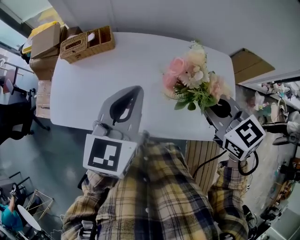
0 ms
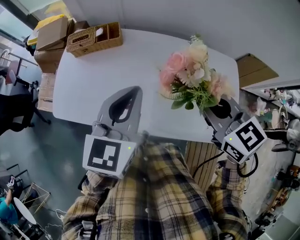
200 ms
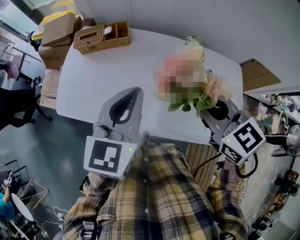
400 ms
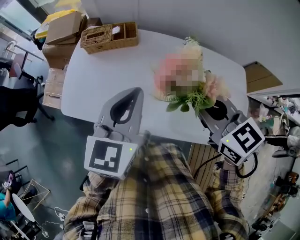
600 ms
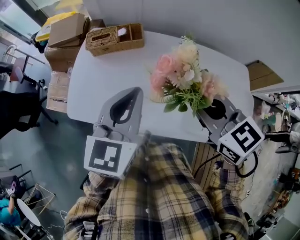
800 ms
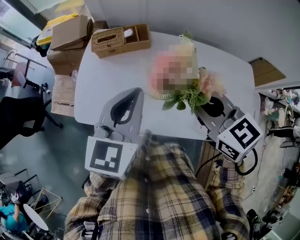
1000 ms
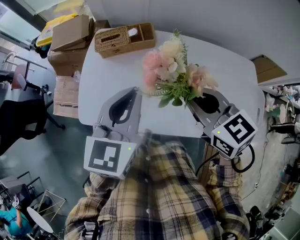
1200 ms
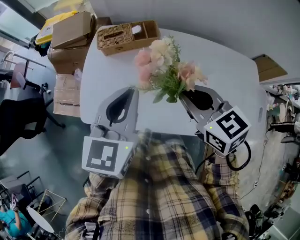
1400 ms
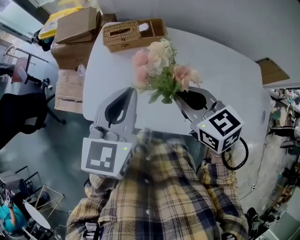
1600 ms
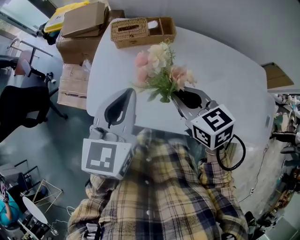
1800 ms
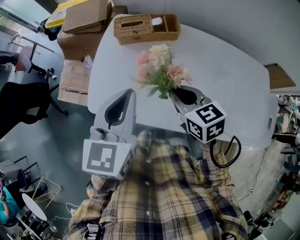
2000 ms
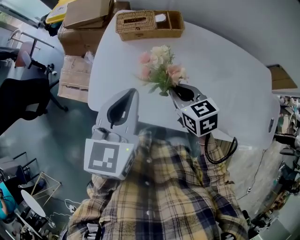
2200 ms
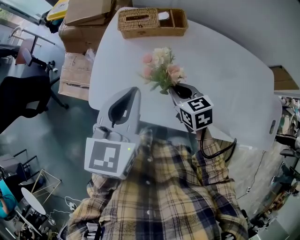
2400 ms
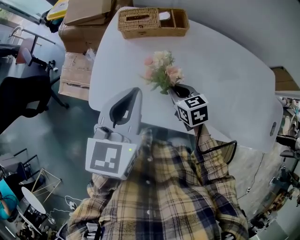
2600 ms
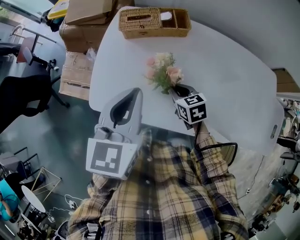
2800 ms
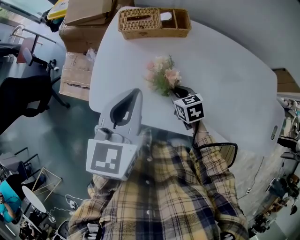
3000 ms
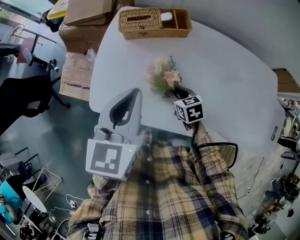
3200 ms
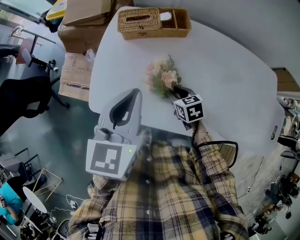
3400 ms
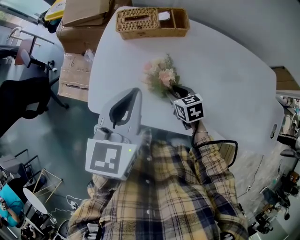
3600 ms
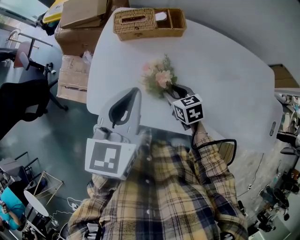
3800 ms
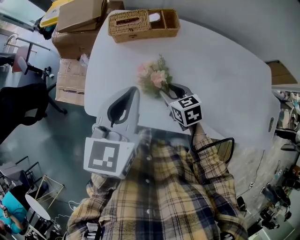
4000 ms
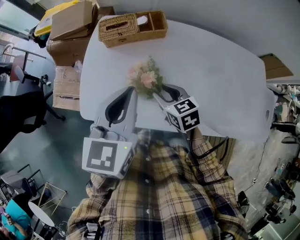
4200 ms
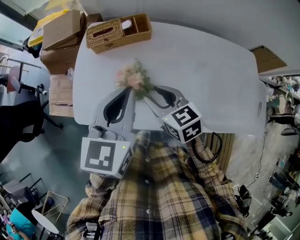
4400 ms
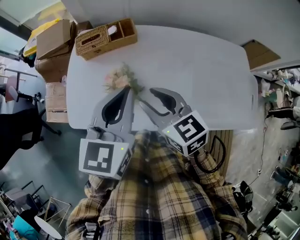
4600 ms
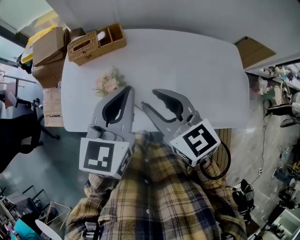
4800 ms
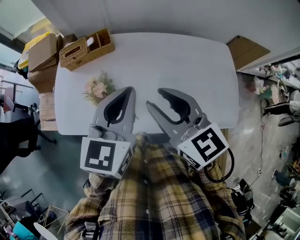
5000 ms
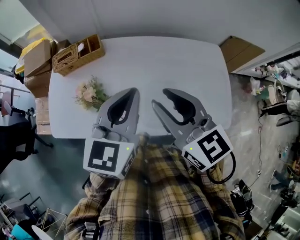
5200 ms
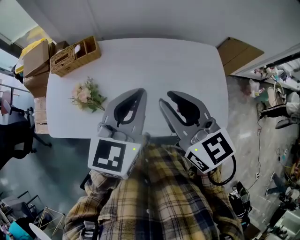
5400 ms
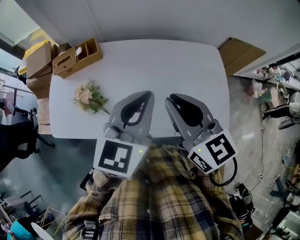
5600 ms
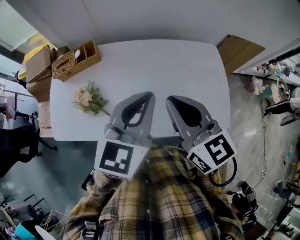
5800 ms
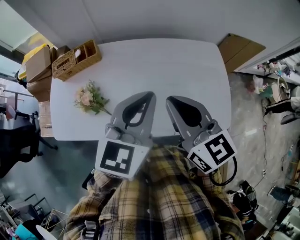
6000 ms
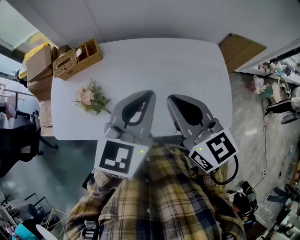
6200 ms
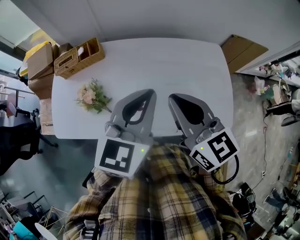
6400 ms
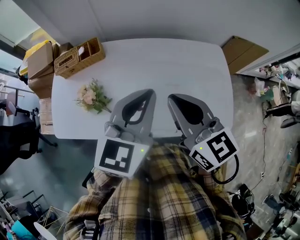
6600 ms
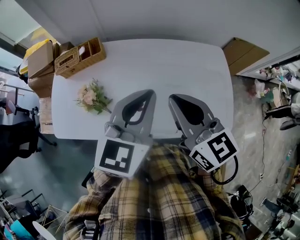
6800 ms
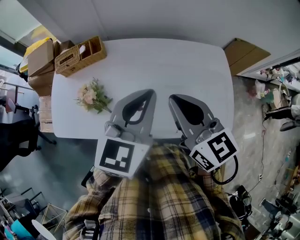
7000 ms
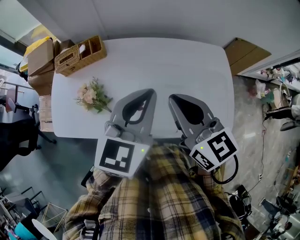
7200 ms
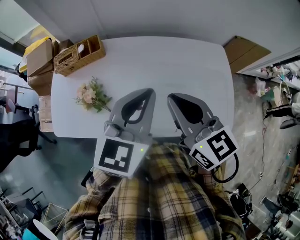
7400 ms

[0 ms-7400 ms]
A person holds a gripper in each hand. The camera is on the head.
0 ms to 1400 ms: The grippers both shift to the left by some 25 cm.
1400 ms to 3000 ms: The right gripper heads downward, covering some 30 cm, and rotates some 20 degrees. The left gripper goes approximately 10 cm downward and to the left.
3000 ms to 4400 ms: The left gripper shifts approximately 10 cm to the right, while the right gripper heads upward, covering approximately 15 cm, and opens its fingers.
4400 ms to 6000 ms: The left gripper goes approximately 35 cm to the right. The right gripper is displaced to the right and upward by some 35 cm, turns by about 30 degrees, and closes.
6000 ms to 7400 ms: The grippers move only a little.

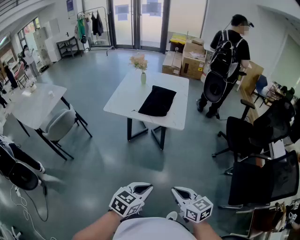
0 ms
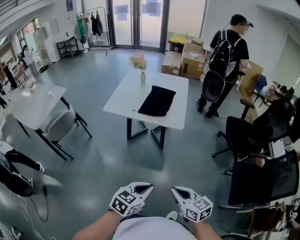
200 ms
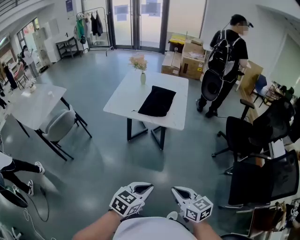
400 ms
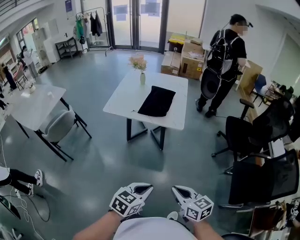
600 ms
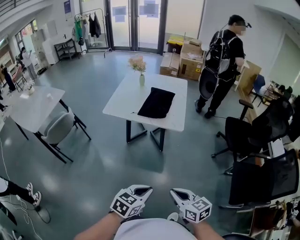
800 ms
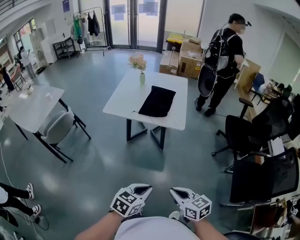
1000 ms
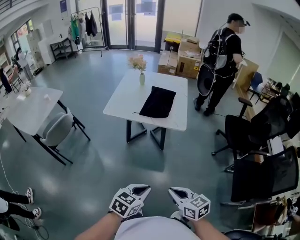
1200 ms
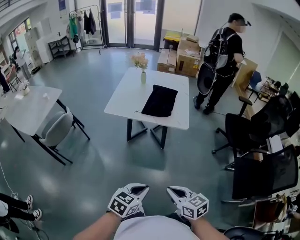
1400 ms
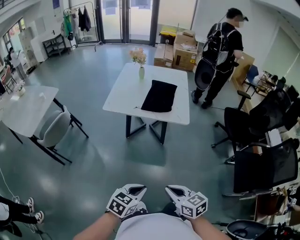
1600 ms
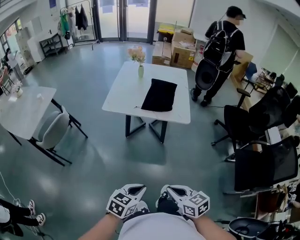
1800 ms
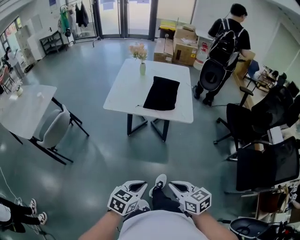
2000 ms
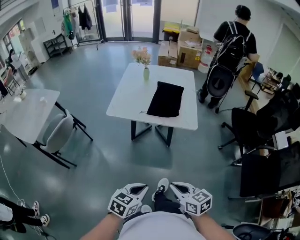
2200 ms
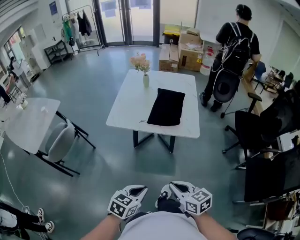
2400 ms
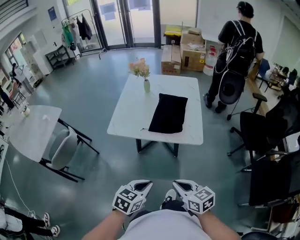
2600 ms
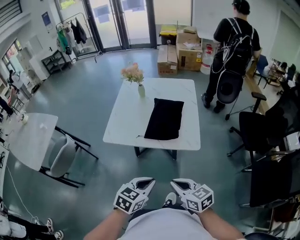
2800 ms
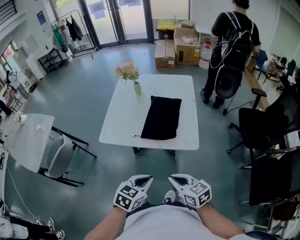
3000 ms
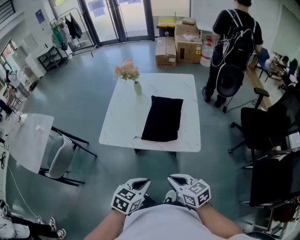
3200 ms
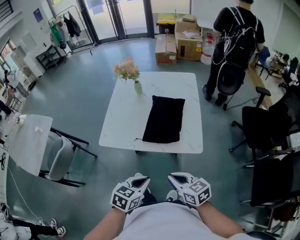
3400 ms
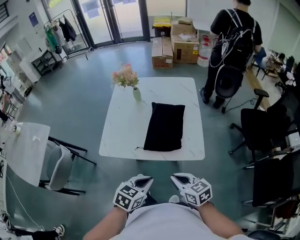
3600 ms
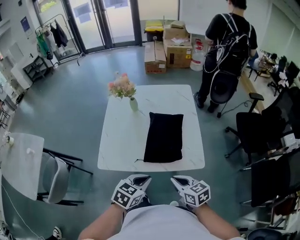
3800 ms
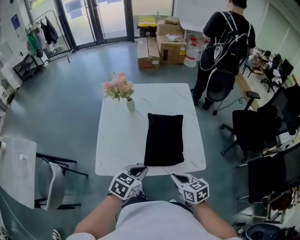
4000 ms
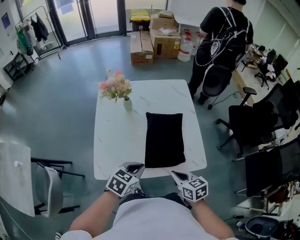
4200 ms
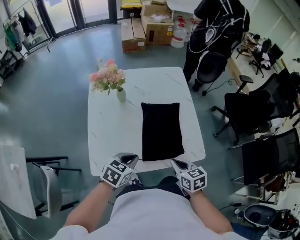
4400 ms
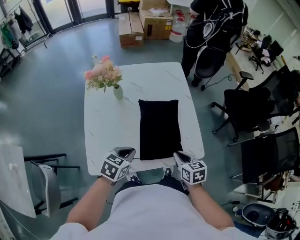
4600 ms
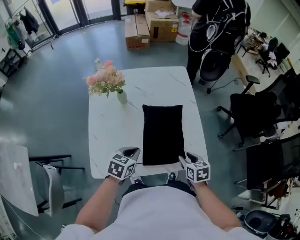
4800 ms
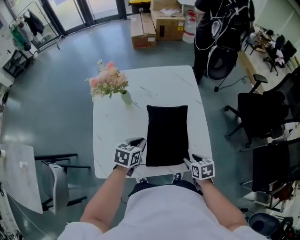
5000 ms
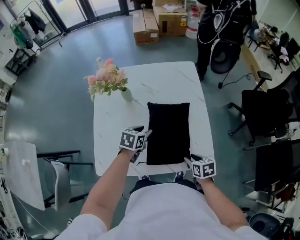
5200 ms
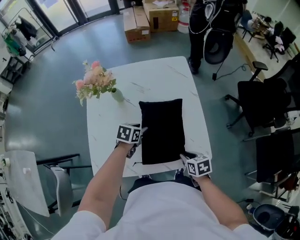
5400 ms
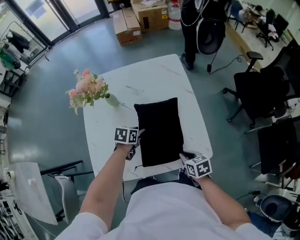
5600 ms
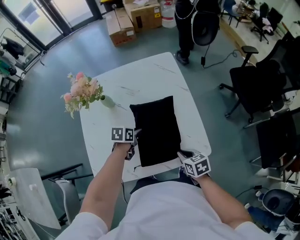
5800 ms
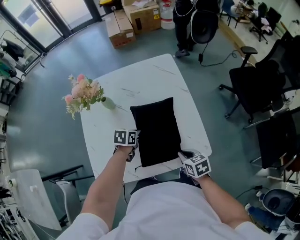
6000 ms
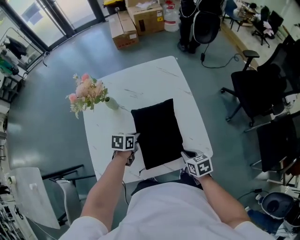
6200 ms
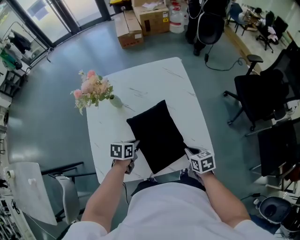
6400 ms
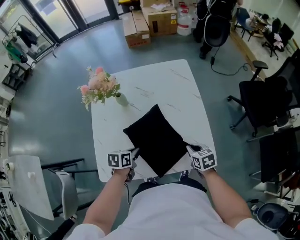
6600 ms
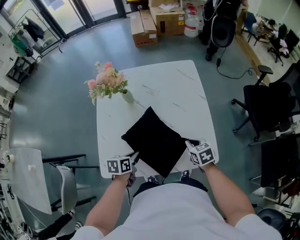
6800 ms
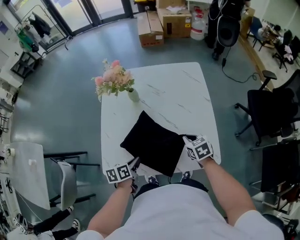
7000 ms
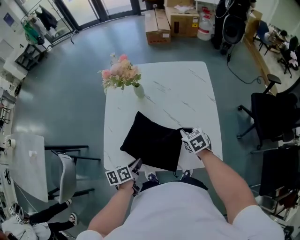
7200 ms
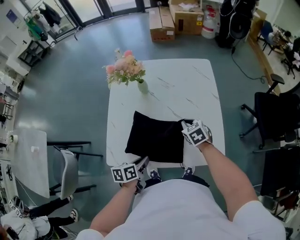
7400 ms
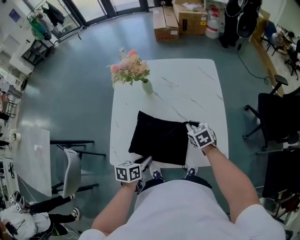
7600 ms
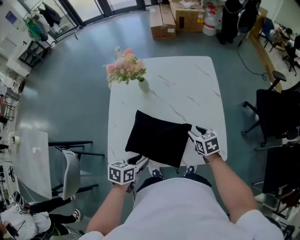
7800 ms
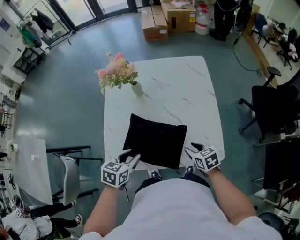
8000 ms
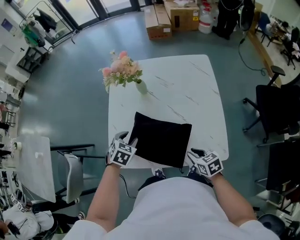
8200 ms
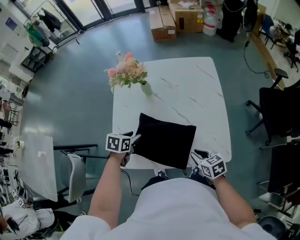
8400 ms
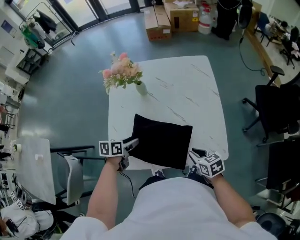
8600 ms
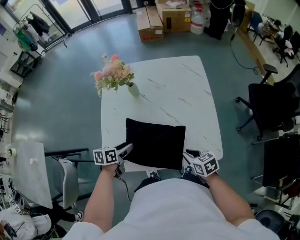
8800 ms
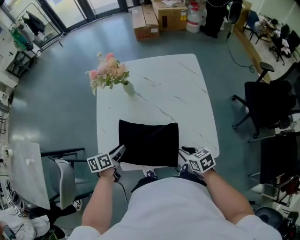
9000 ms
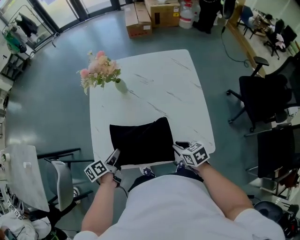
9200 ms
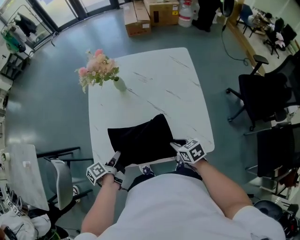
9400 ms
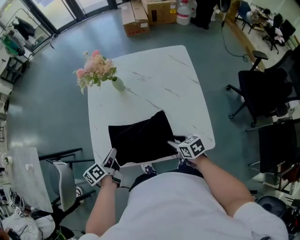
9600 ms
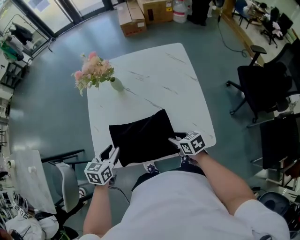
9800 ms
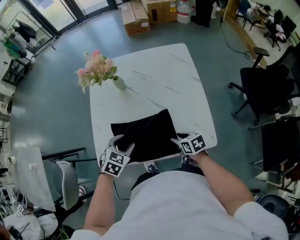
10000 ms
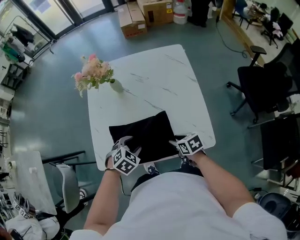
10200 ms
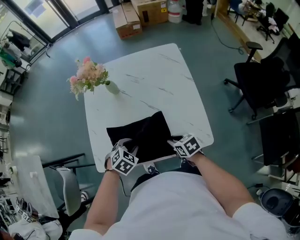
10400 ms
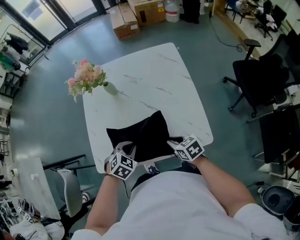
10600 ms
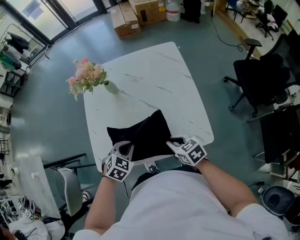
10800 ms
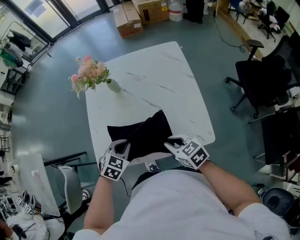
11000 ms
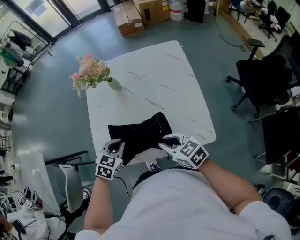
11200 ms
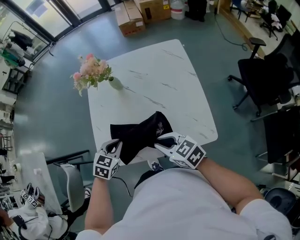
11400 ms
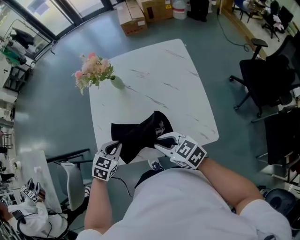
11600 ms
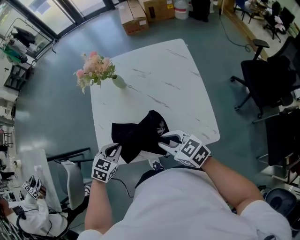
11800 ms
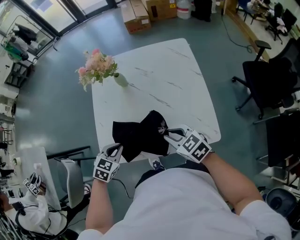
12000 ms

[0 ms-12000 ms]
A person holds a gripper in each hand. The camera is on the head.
0 ms to 1600 ms: Both grippers travel together to the left, about 15 cm.
1600 ms to 3000 ms: Both grippers travel together forward, roughly 30 cm.
3000 ms to 4400 ms: The left gripper changes place by approximately 35 cm. Meanwhile the right gripper changes place by about 25 cm, and changes its angle by approximately 30 degrees.
4400 ms to 6000 ms: The left gripper is displaced forward and downward by roughly 20 cm, rotates some 20 degrees, and opens, then closes once more, while the right gripper is displaced downward, to the right and forward by about 10 cm, and opens, then closes again.
6000 ms to 7600 ms: The right gripper shifts about 15 cm forward and to the left, and changes its angle by roughly 30 degrees; the left gripper moves backward, roughly 20 cm, and changes its angle by about 30 degrees.
7600 ms to 9000 ms: The right gripper heads backward, covering approximately 15 cm, turns by about 20 degrees, and opens and closes again; the left gripper shifts roughly 10 cm to the left and forward, and opens, then closes once more.
9000 ms to 10400 ms: The left gripper moves to the right, about 10 cm, and twists roughly 70 degrees clockwise, seen from behind.
10400 ms to 12000 ms: The left gripper goes about 10 cm to the left, and closes its fingers. The right gripper heads upward and to the left, covering about 10 cm, and turns by about 30 degrees.

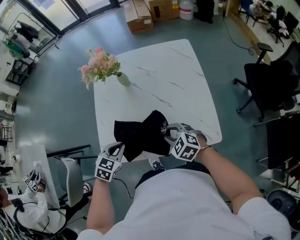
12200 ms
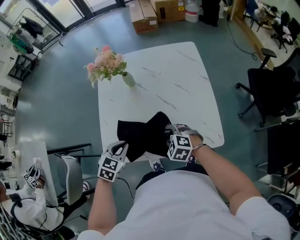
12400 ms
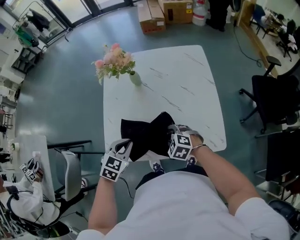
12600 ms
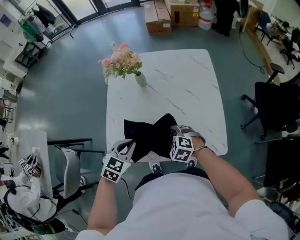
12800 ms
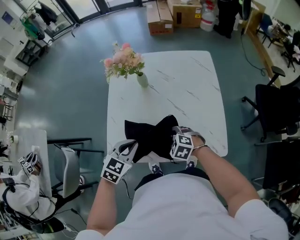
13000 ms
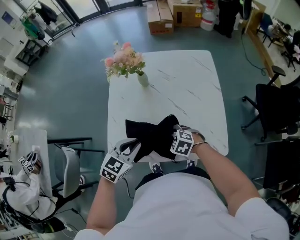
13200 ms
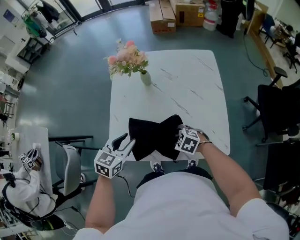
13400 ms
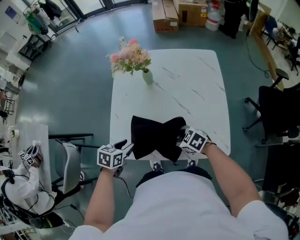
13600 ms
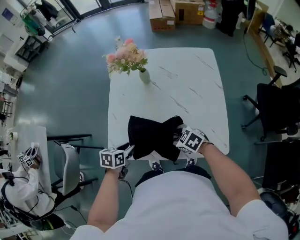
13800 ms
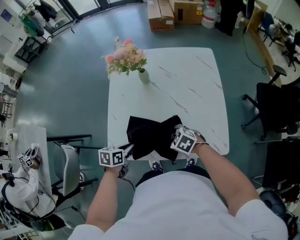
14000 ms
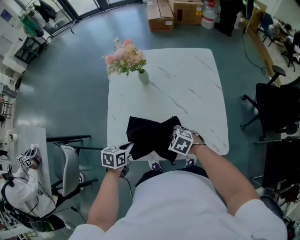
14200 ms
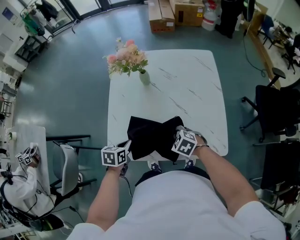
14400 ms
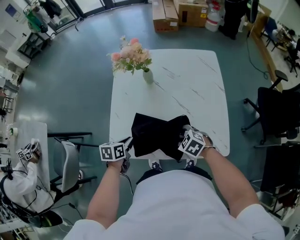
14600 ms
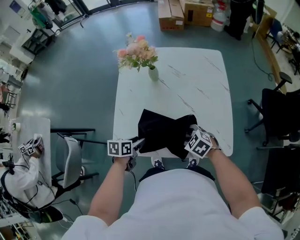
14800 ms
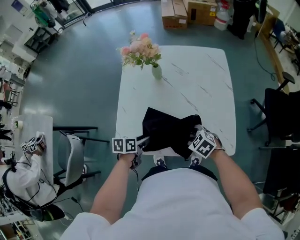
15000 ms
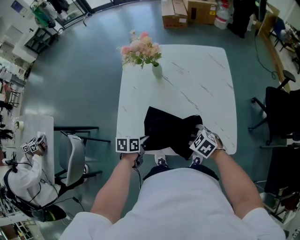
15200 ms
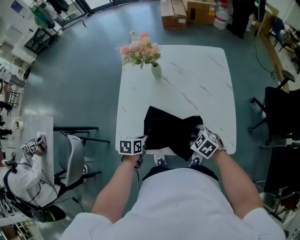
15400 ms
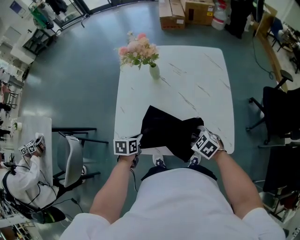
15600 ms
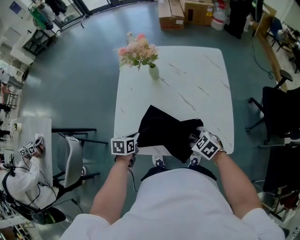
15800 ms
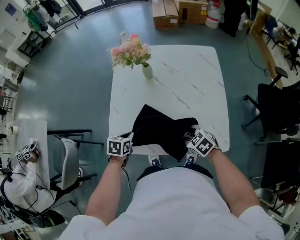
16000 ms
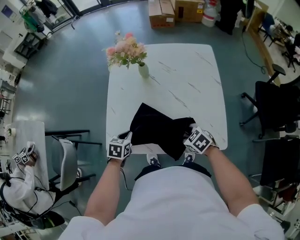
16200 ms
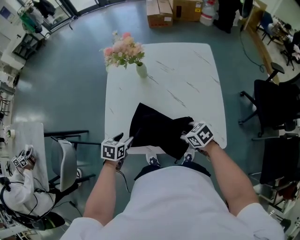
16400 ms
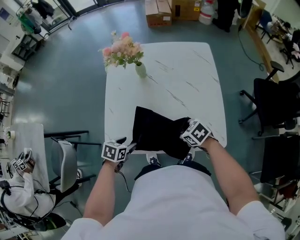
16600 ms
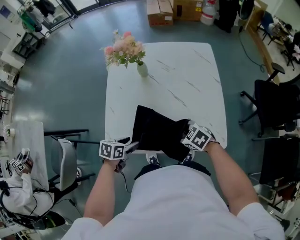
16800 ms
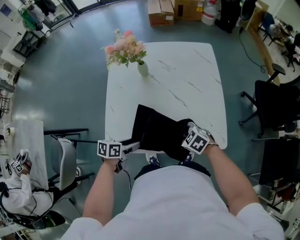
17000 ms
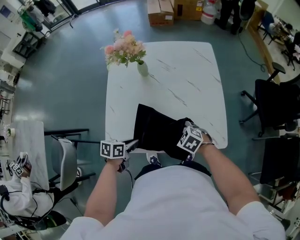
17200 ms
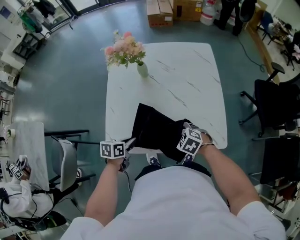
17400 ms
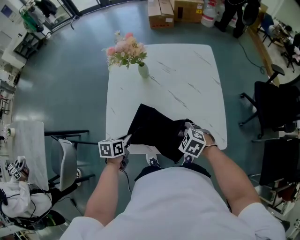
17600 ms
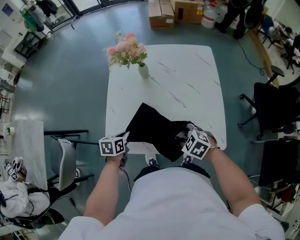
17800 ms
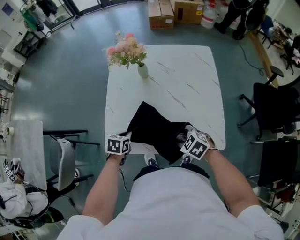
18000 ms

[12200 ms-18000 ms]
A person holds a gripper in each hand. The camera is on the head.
12200 ms to 13600 ms: The left gripper moves some 5 cm upward and comes back, swivels roughly 30 degrees, and opens, while the right gripper moves about 5 cm, and swivels roughly 20 degrees.
13600 ms to 15000 ms: The left gripper shifts by roughly 5 cm, turns by approximately 20 degrees, and closes, then reopens.
15000 ms to 16600 ms: The left gripper swivels about 30 degrees, and closes and opens again.
16600 ms to 18000 ms: The left gripper closes.
